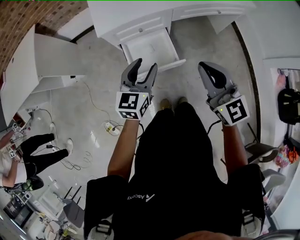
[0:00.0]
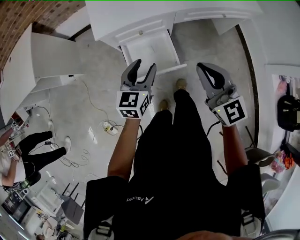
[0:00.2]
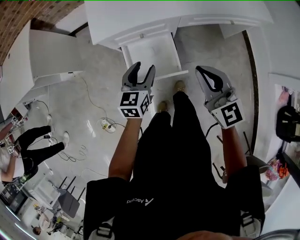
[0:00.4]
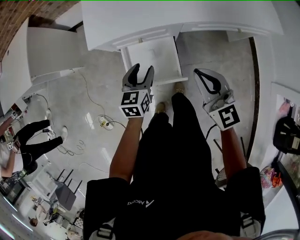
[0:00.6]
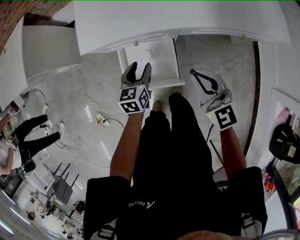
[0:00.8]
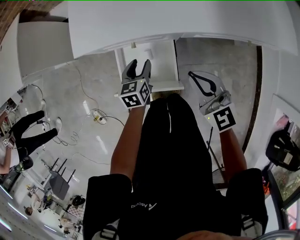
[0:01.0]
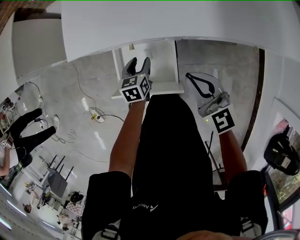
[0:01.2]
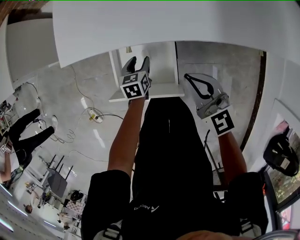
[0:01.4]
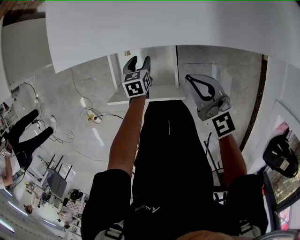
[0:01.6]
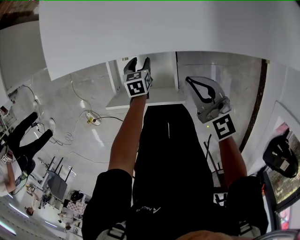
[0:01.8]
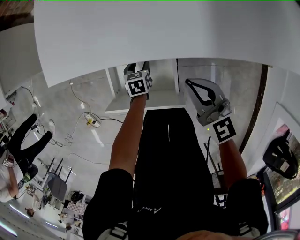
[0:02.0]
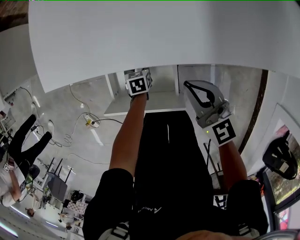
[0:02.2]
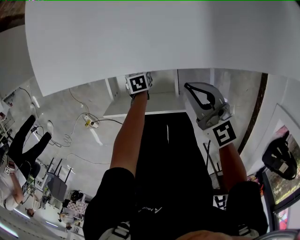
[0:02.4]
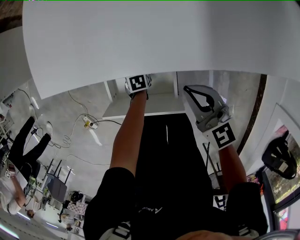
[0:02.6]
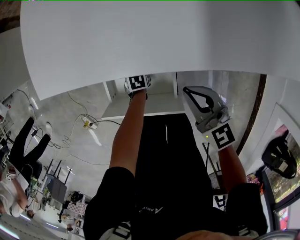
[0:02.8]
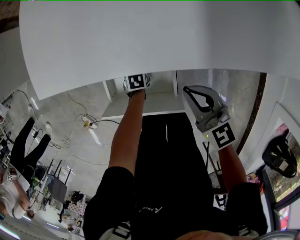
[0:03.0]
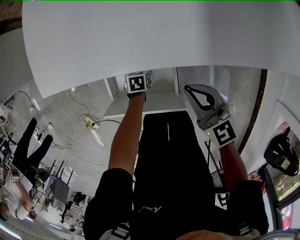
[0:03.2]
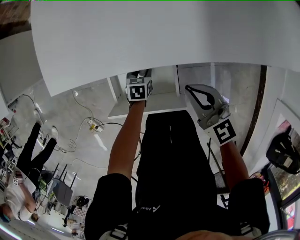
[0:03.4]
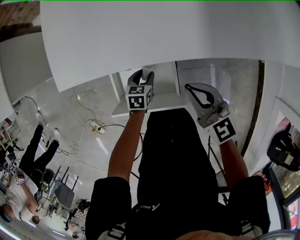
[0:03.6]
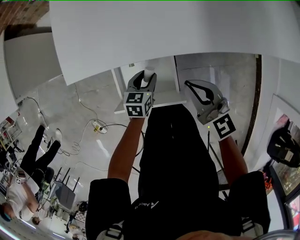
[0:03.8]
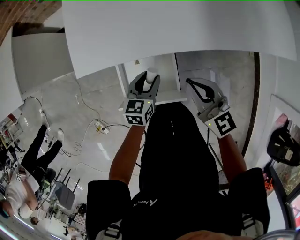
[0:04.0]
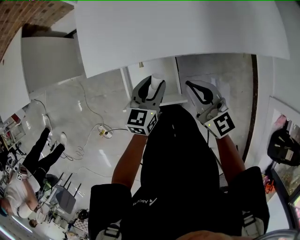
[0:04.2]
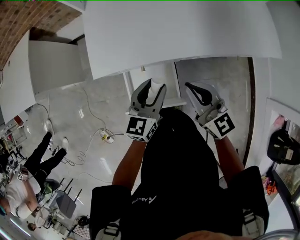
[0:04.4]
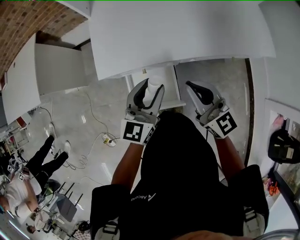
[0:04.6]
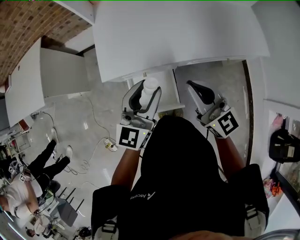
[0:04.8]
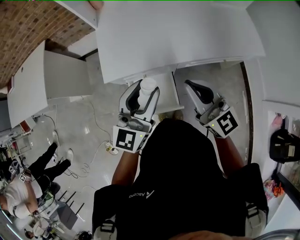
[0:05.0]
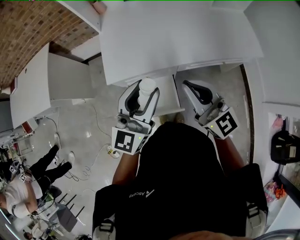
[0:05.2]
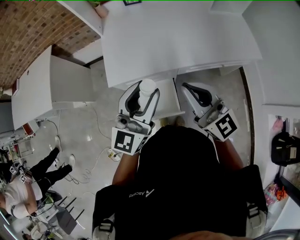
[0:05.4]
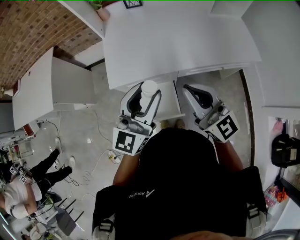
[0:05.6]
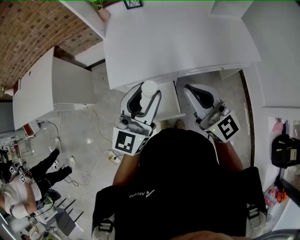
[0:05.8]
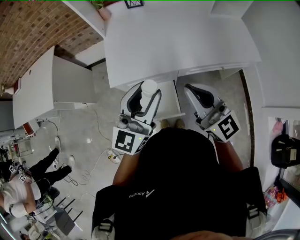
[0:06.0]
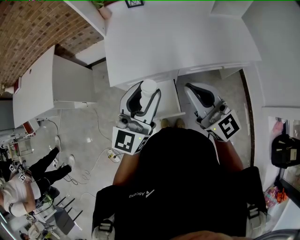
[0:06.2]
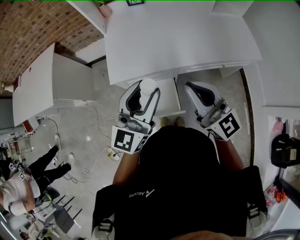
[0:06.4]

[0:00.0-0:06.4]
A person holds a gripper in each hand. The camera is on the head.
0:00.0 to 0:01.6: Both grippers travel together downward and forward, approximately 50 cm. The right gripper rotates roughly 30 degrees. Meanwhile the left gripper points its fingers approximately 40 degrees further downward.
0:01.6 to 0:03.2: The right gripper goes roughly 5 cm downward; the left gripper goes approximately 15 cm downward.
0:03.2 to 0:04.8: The right gripper is displaced upward by about 40 cm, and turns by approximately 30 degrees. The left gripper moves upward, roughly 70 cm, and points its fingers about 70 degrees further upward.
0:04.8 to 0:06.4: Both grippers move upward and backward, roughly 10 cm.

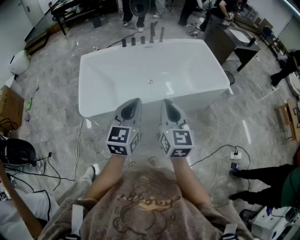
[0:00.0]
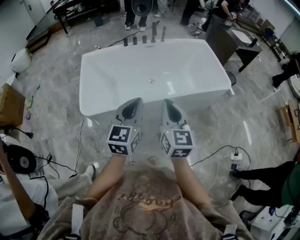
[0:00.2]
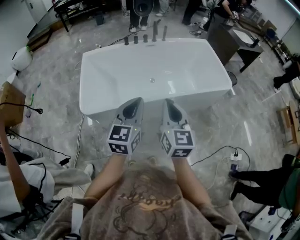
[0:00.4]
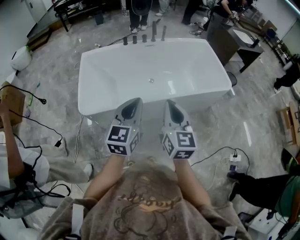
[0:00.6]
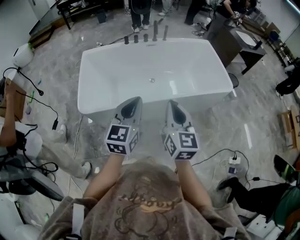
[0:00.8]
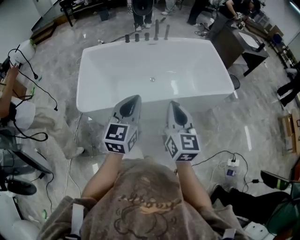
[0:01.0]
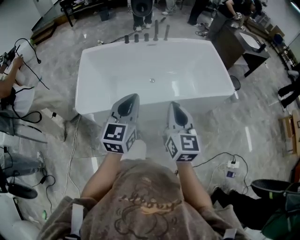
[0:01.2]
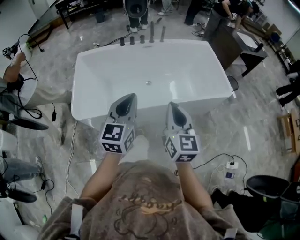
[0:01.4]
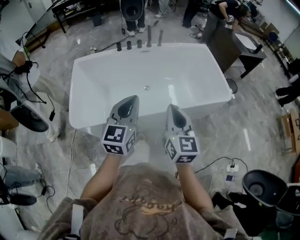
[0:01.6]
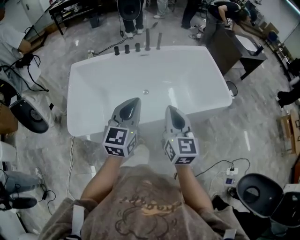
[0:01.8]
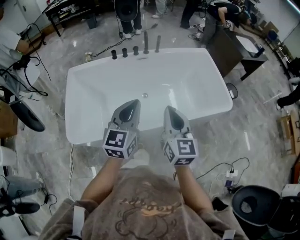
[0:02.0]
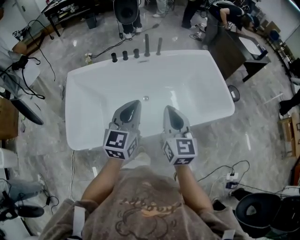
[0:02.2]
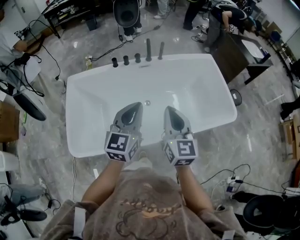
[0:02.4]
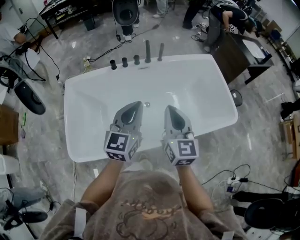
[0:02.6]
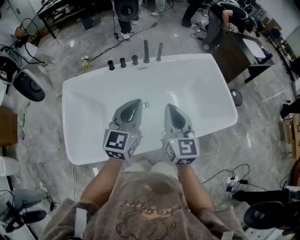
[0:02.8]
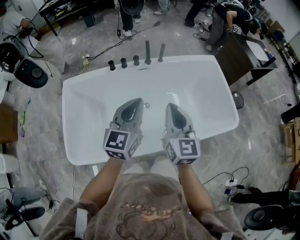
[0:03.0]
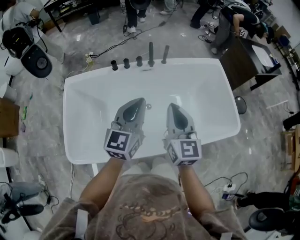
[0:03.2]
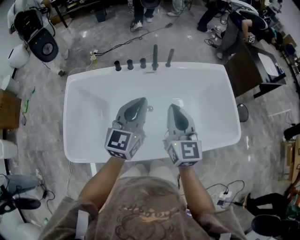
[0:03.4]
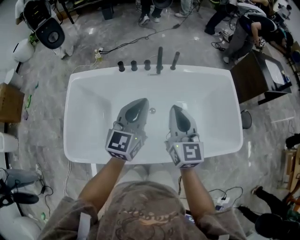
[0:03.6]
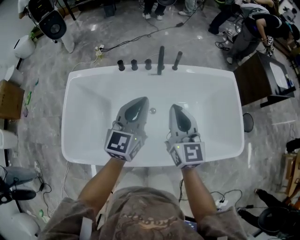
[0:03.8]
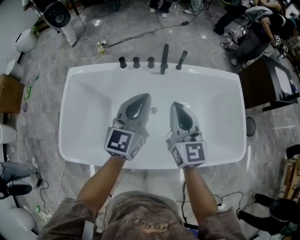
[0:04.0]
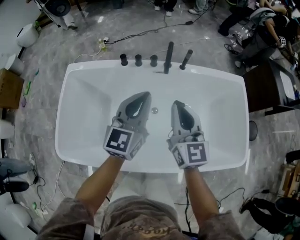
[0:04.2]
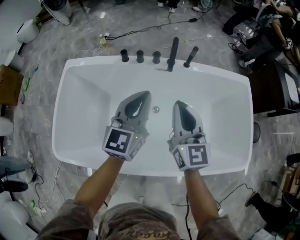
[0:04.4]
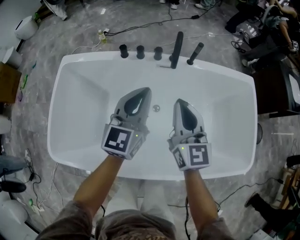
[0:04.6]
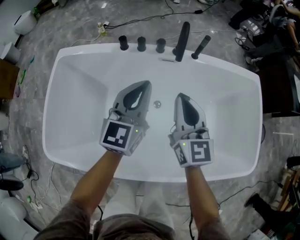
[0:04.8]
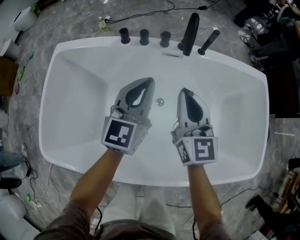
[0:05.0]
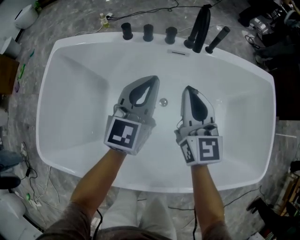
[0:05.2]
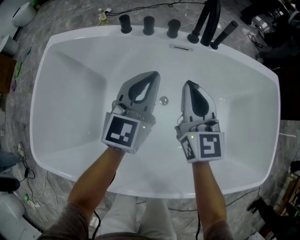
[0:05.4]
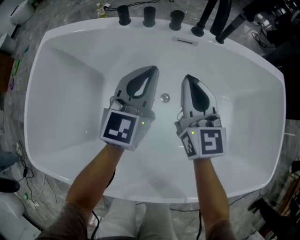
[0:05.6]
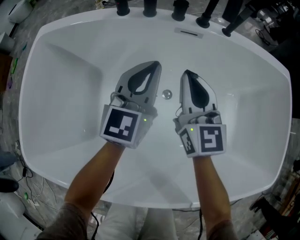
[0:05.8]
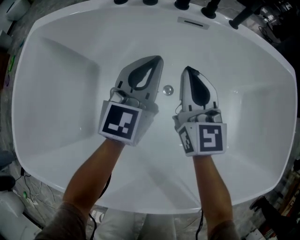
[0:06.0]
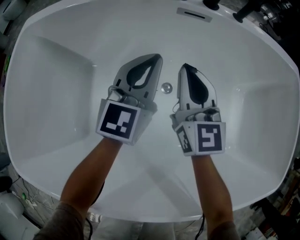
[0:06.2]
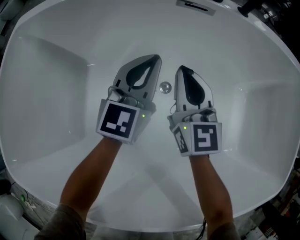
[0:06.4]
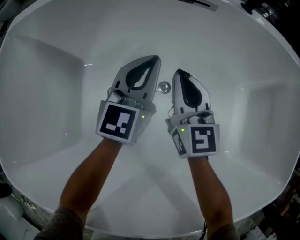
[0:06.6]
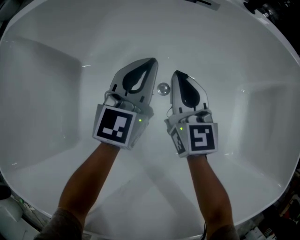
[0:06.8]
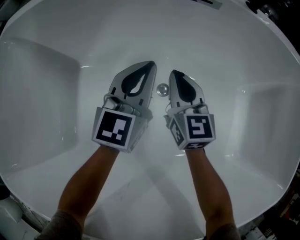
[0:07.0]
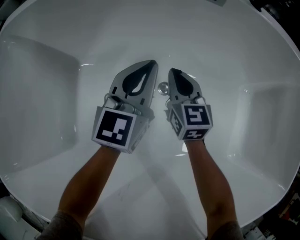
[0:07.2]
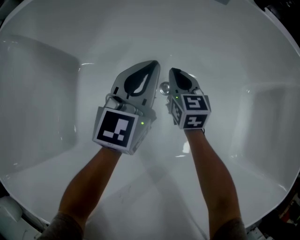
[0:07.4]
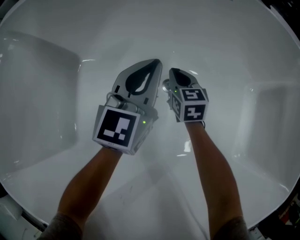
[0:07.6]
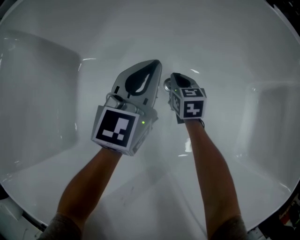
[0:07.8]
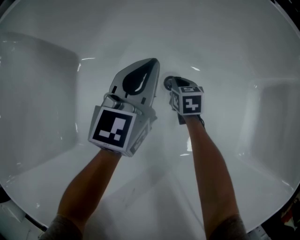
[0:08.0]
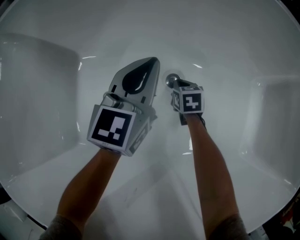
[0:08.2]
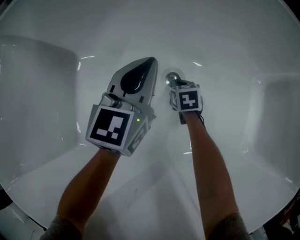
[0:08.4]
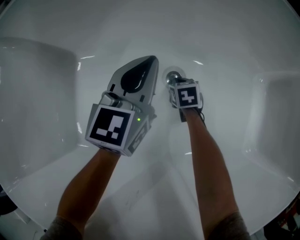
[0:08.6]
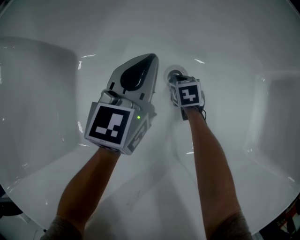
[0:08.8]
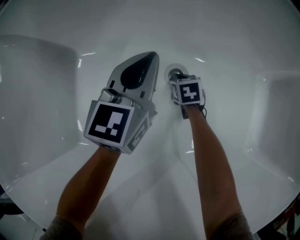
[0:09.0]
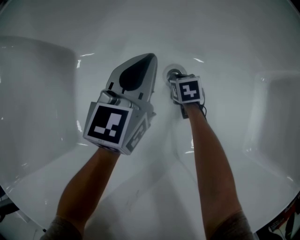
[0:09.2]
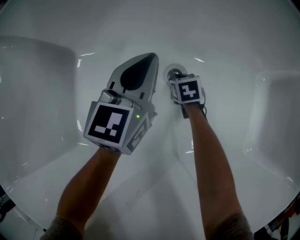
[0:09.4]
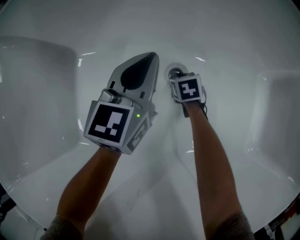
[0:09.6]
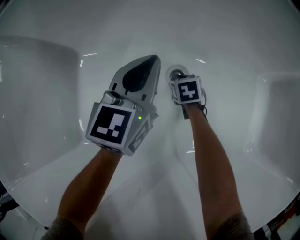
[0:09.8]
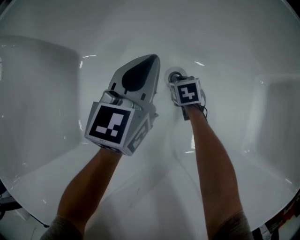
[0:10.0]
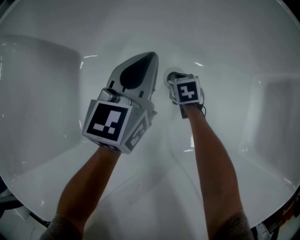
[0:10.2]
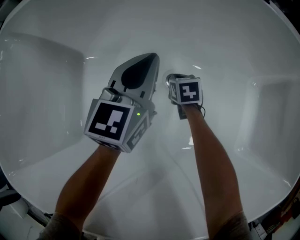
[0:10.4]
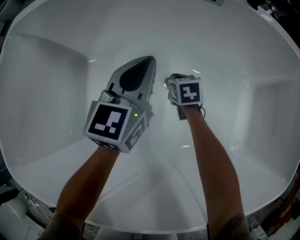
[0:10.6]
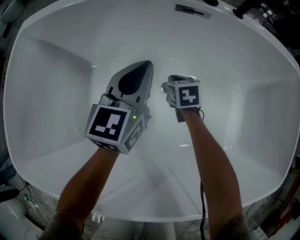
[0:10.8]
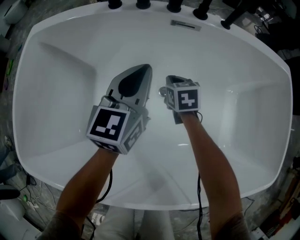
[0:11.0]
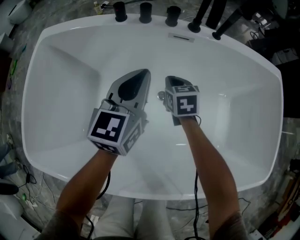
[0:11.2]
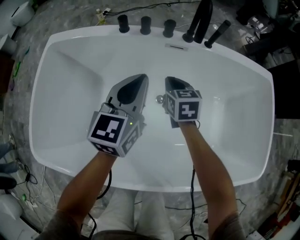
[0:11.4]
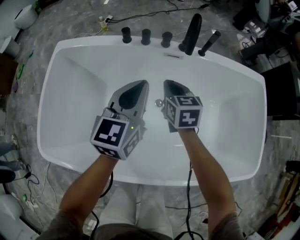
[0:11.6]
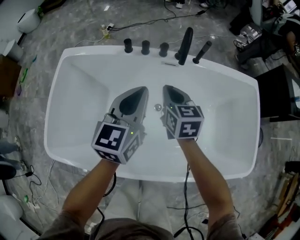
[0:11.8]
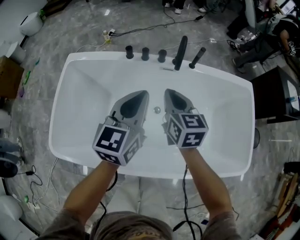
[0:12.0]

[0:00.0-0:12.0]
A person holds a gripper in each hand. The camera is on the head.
0:00.0 to 0:01.6: The two grippers go some 15 cm forward and to the right.
0:01.6 to 0:03.0: The two grippers go roughly 30 cm forward.
0:03.0 to 0:04.4: The grippers both shift forward and downward by some 20 cm.
0:04.4 to 0:06.0: Both grippers travel together downward, roughly 30 cm.
0:06.0 to 0:07.6: The right gripper heads downward, covering approximately 35 cm, and swivels approximately 30 degrees; the left gripper heads downward, covering roughly 15 cm.
0:07.6 to 0:09.0: The right gripper is displaced downward by roughly 15 cm, and swivels some 30 degrees.
0:09.0 to 0:10.4: The right gripper heads upward, covering some 5 cm.
0:10.4 to 0:12.0: Both grippers move upward, roughly 50 cm. The right gripper angles its fingers upward, by roughly 40 degrees.

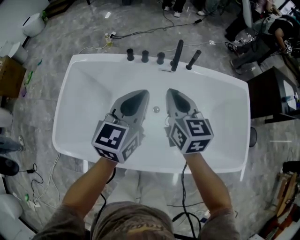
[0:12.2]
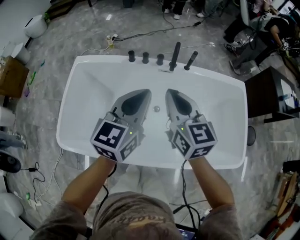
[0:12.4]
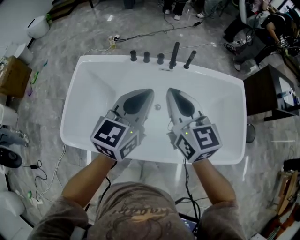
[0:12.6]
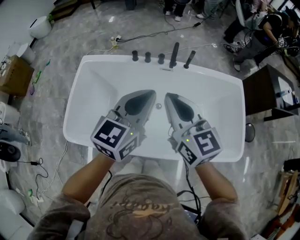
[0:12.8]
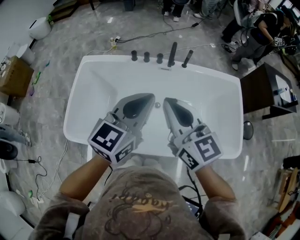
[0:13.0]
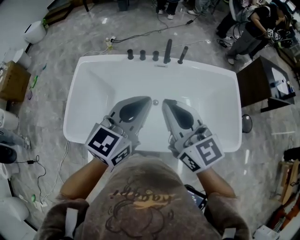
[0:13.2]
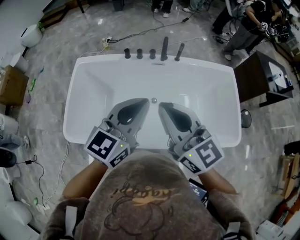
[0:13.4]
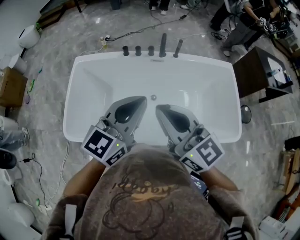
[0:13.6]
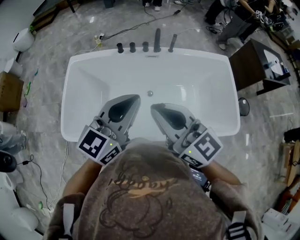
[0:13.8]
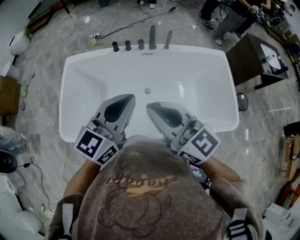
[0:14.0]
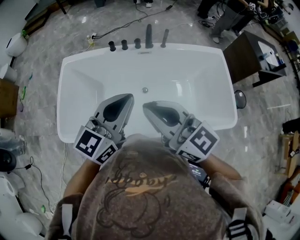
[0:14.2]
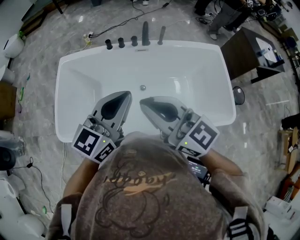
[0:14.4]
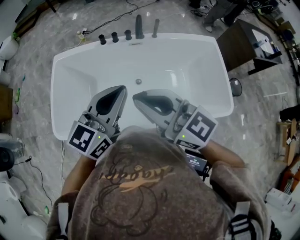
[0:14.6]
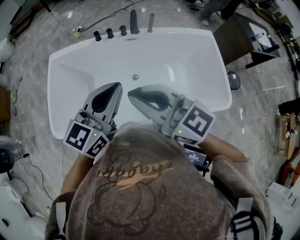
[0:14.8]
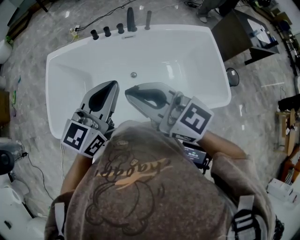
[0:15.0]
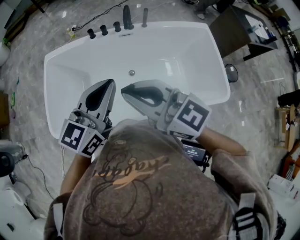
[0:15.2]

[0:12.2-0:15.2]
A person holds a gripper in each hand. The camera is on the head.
0:12.2 to 0:13.8: Both grippers travel together backward and upward, roughly 25 cm. The left gripper changes its angle by approximately 20 degrees; the right gripper changes its angle by approximately 30 degrees.
0:13.8 to 0:15.2: The grippers make only small movements.

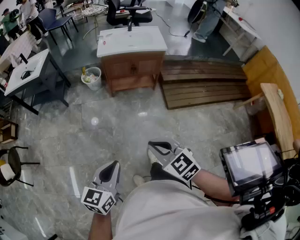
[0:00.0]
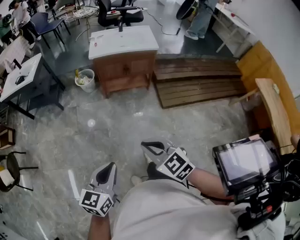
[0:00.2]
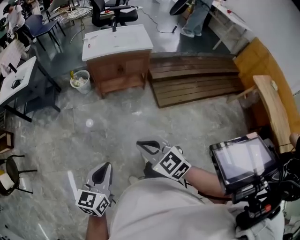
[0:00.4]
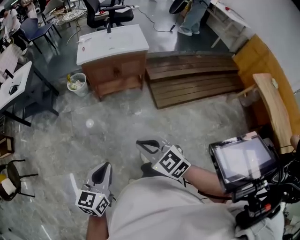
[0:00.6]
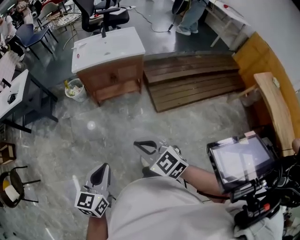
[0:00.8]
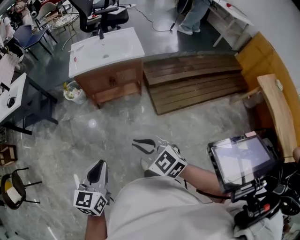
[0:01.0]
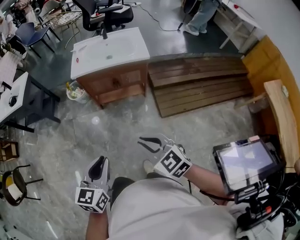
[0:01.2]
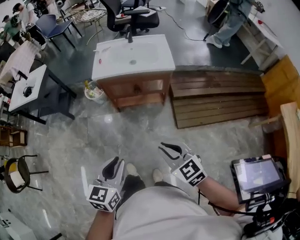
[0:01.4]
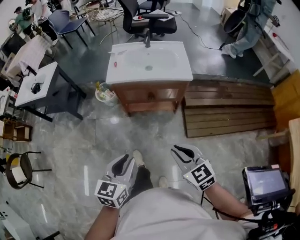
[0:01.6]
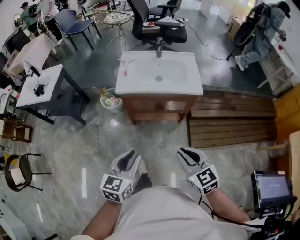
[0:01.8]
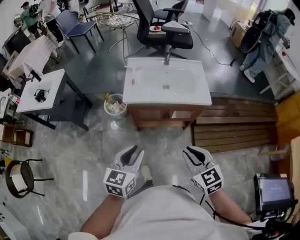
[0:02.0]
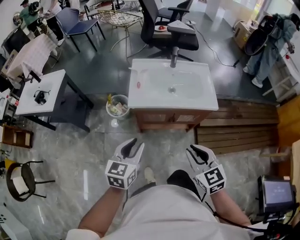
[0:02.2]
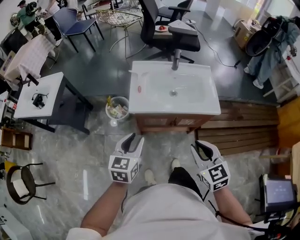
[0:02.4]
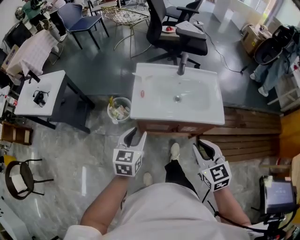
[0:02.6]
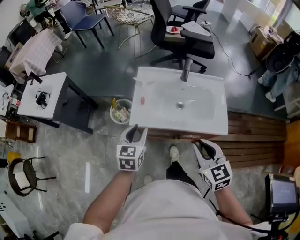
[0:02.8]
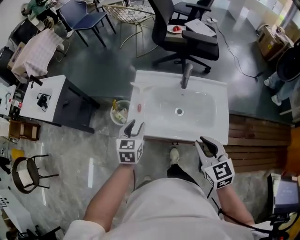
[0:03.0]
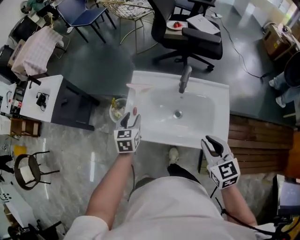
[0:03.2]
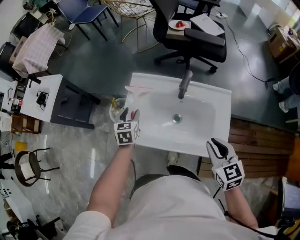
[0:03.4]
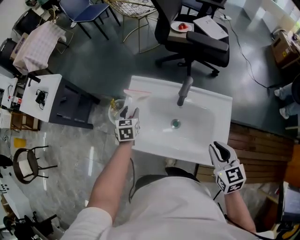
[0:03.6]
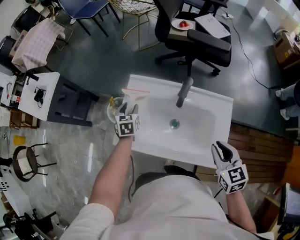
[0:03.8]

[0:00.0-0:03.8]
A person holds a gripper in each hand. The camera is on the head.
0:00.0 to 0:01.2: Both grippers move forward and to the right, approximately 25 cm.
0:01.2 to 0:02.6: Both grippers are carried forward, roughly 50 cm. The left gripper opens up.
0:02.6 to 0:03.8: The left gripper moves forward and downward, about 40 cm, and rotates approximately 30 degrees. Meanwhile the right gripper heads forward and to the right, covering approximately 35 cm.
